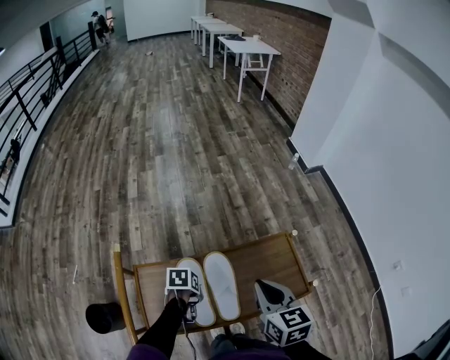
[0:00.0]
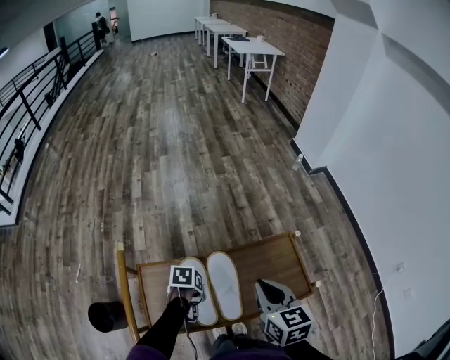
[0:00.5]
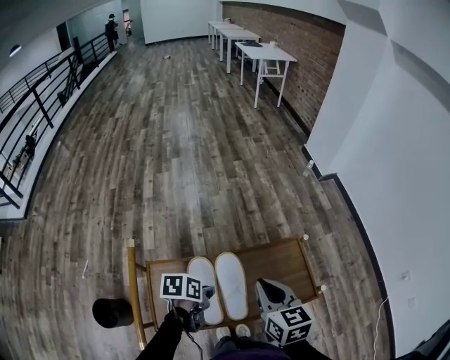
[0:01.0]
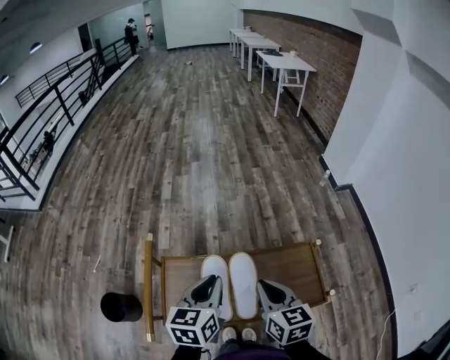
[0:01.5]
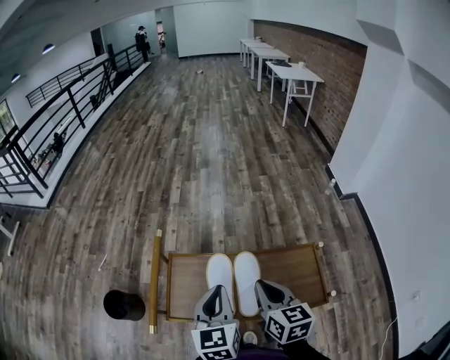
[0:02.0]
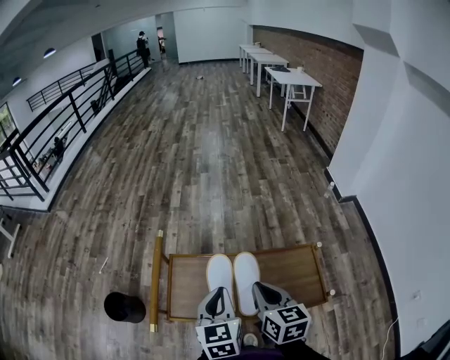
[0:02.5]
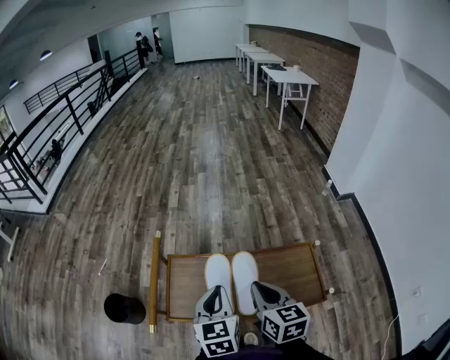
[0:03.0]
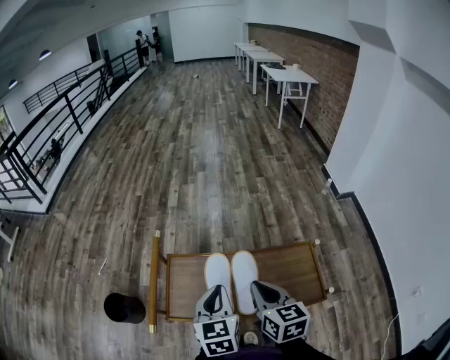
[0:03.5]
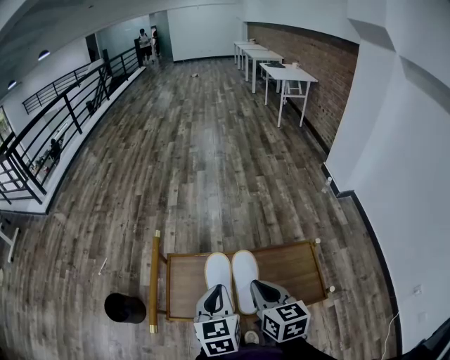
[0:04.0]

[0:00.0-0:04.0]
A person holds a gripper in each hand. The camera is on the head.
0.0 to 2.0 s: The left gripper heads upward, covering about 25 cm, and angles its fingers upward, by roughly 50 degrees; the right gripper moves roughly 10 cm.
2.0 to 4.0 s: The grippers stay close to where they were, moving slightly.

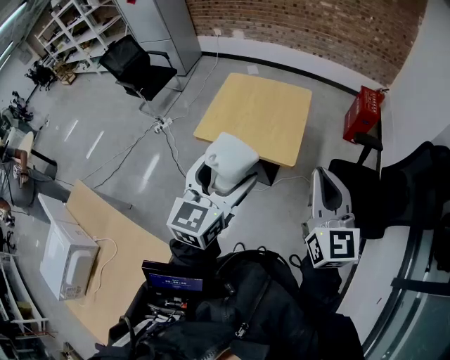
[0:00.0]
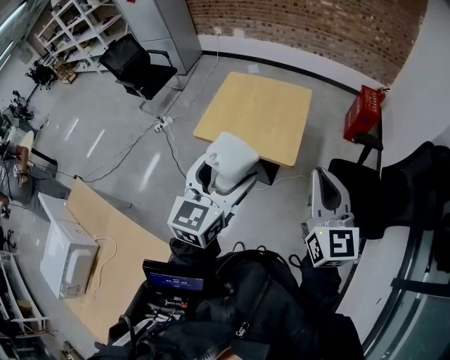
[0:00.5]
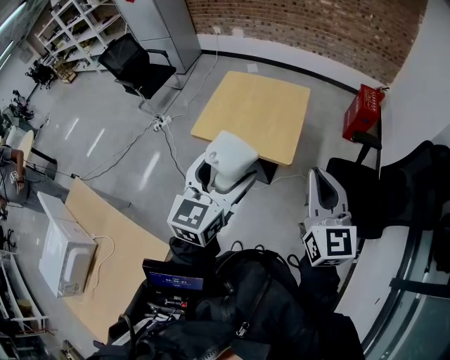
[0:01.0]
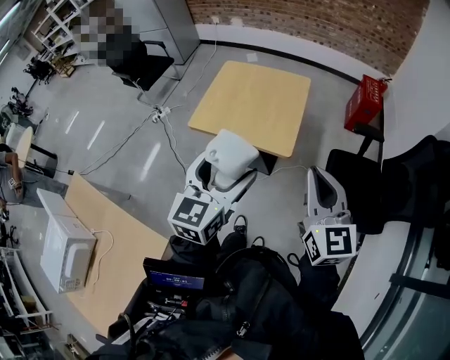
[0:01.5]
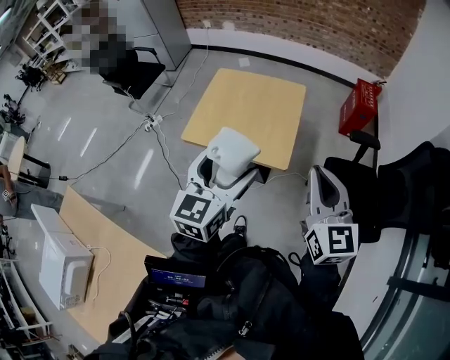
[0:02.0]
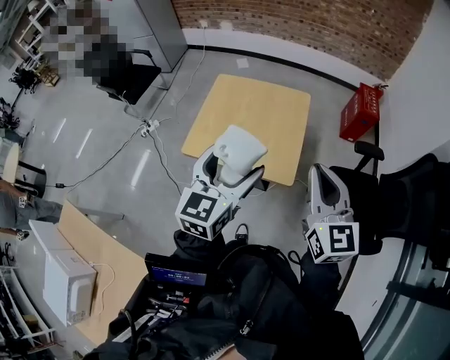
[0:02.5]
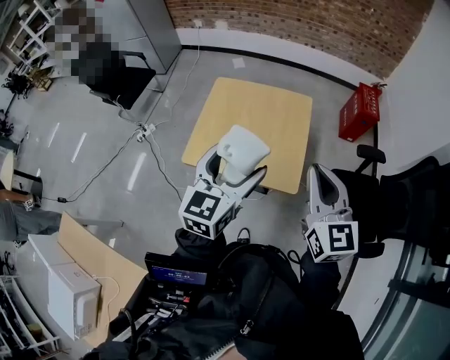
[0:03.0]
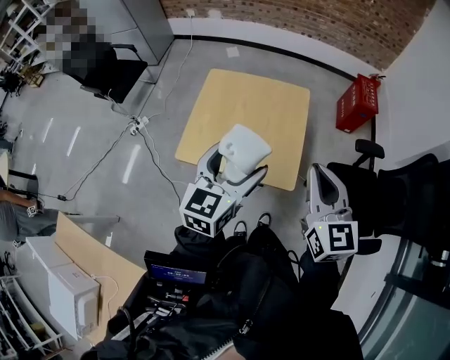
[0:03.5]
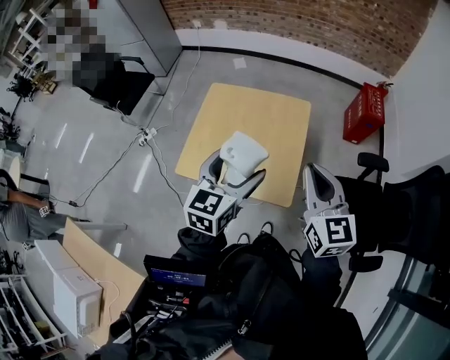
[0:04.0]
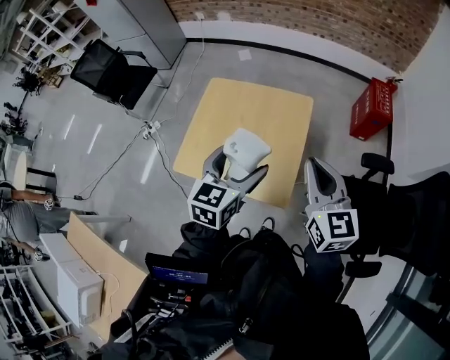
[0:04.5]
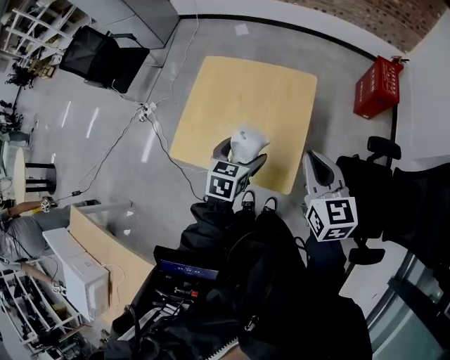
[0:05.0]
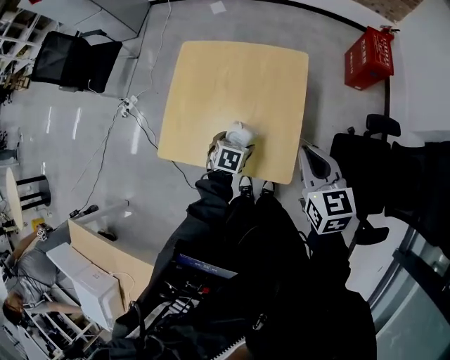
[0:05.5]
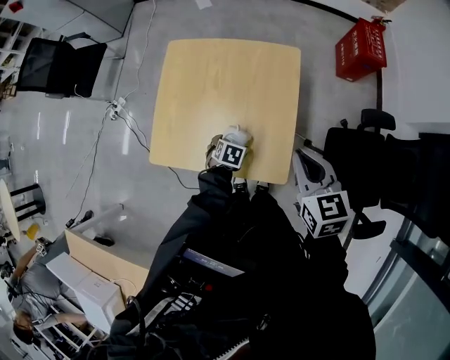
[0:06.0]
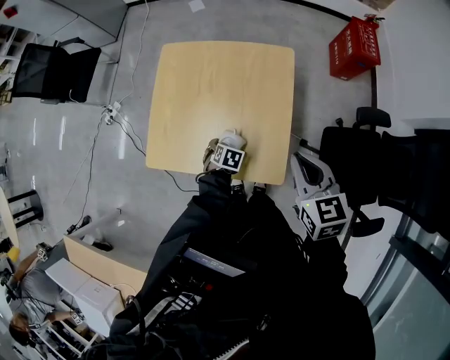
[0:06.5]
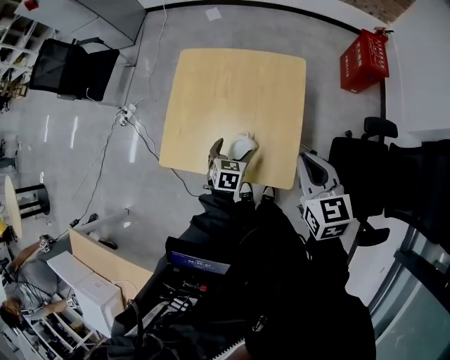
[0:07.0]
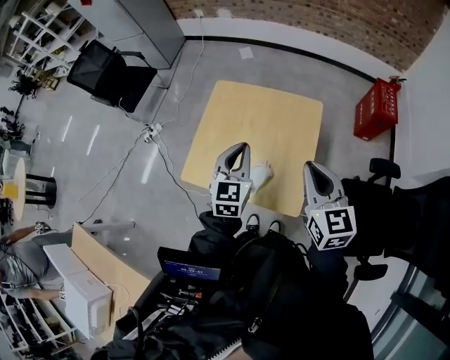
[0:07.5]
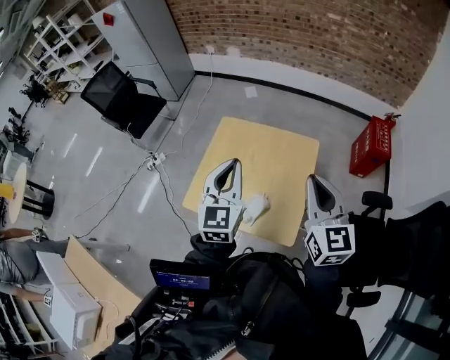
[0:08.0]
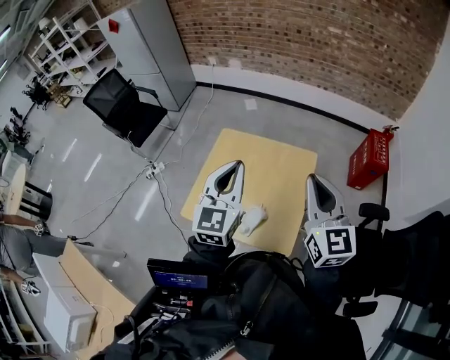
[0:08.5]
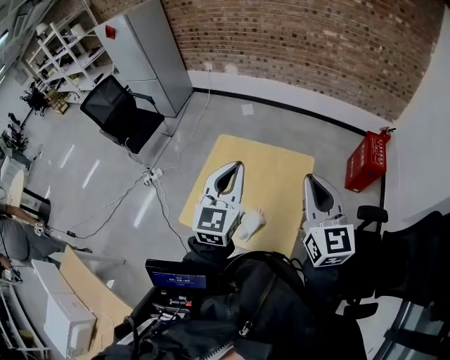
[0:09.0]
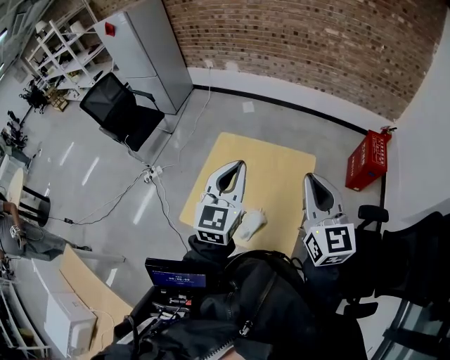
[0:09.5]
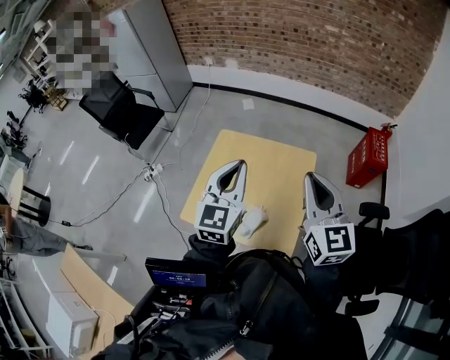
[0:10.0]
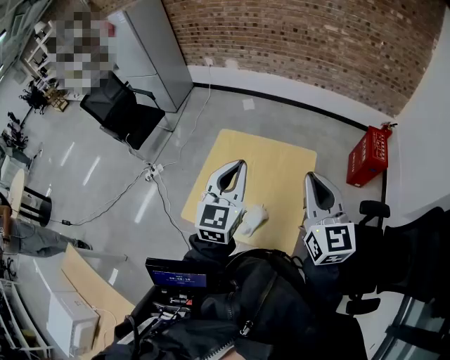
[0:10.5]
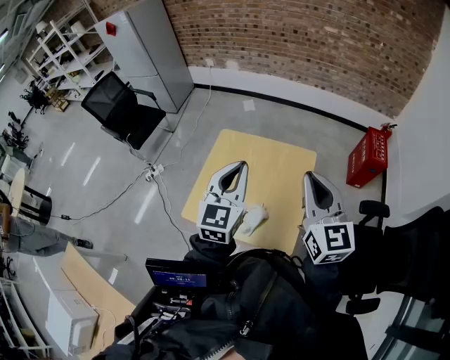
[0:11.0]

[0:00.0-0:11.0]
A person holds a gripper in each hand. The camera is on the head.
0.0 to 2.0 s: Both grippers travel together forward, about 10 cm.
2.0 to 3.5 s: The left gripper travels forward by some 15 cm. The right gripper moves forward and to the left, some 20 cm.
3.5 to 5.5 s: The left gripper shifts roughly 35 cm downward, and tips its fingers downward by roughly 50 degrees. Meanwhile the right gripper heads downward and forward, covering some 20 cm, and changes its angle by approximately 20 degrees.
5.5 to 7.5 s: The left gripper moves upward, roughly 25 cm, tips its fingers upward by about 40 degrees, and closes up. The right gripper shifts about 10 cm upward.
7.5 to 9.0 s: Both grippers travel together upward, approximately 15 cm.
9.0 to 11.0 s: The grippers stay close to where they were, moving slightly.

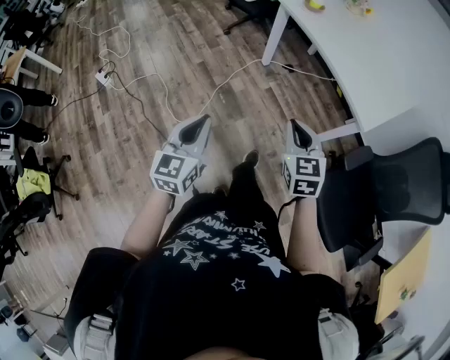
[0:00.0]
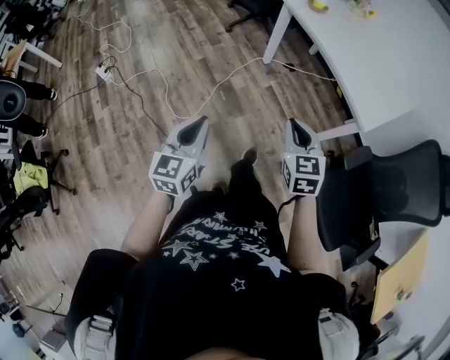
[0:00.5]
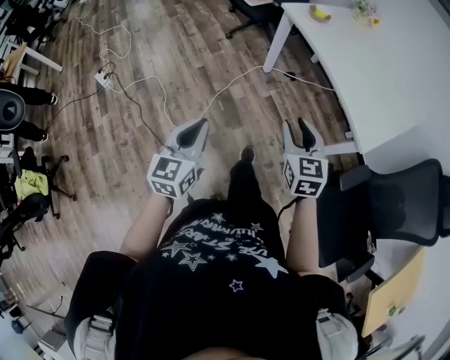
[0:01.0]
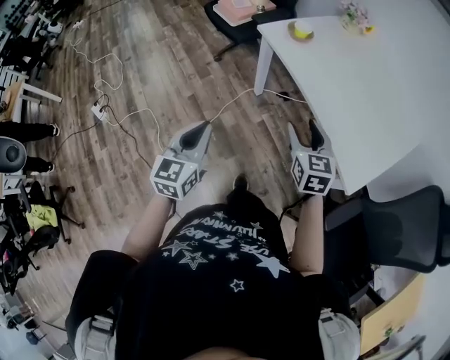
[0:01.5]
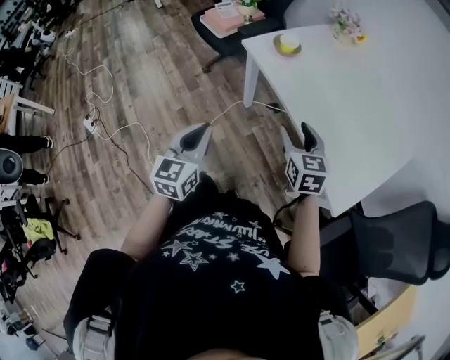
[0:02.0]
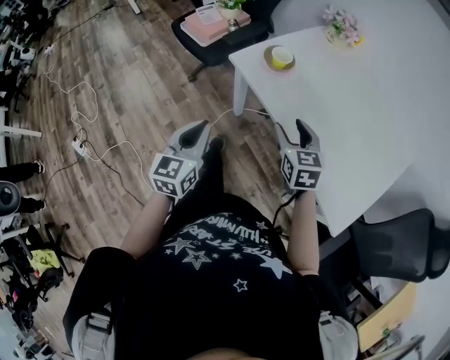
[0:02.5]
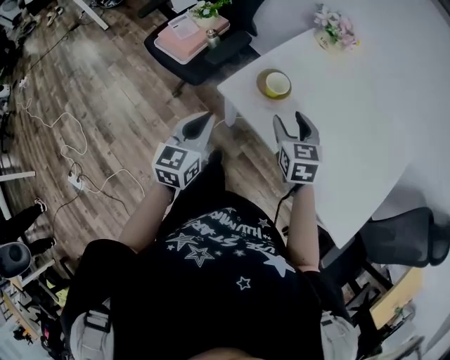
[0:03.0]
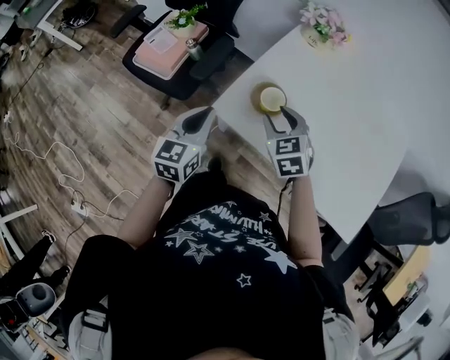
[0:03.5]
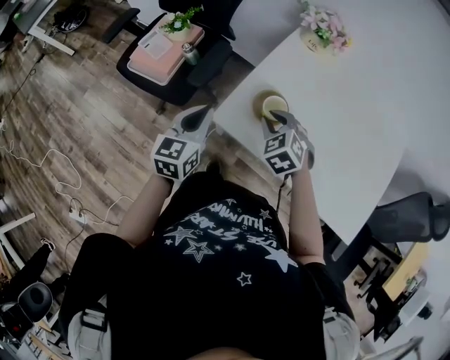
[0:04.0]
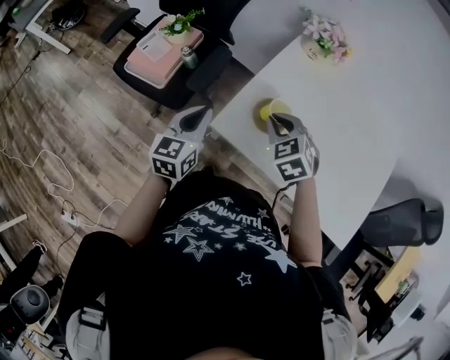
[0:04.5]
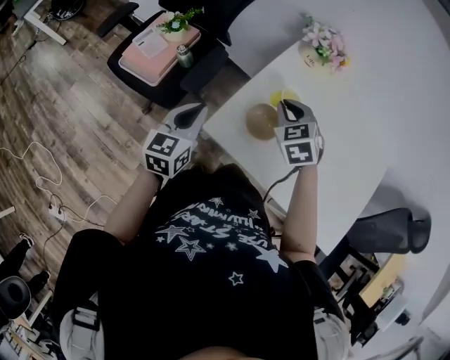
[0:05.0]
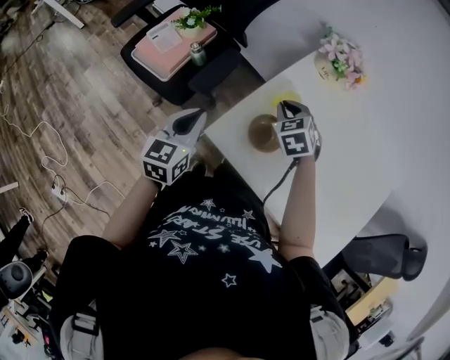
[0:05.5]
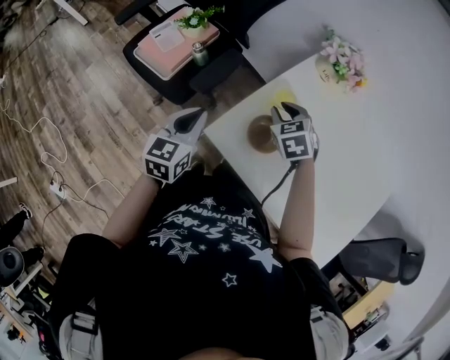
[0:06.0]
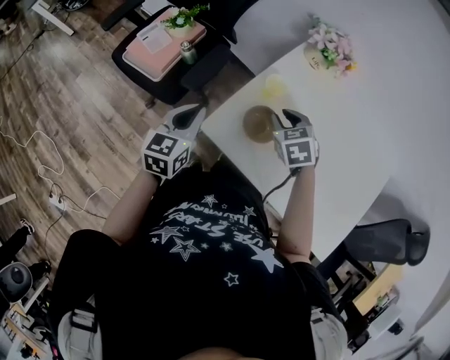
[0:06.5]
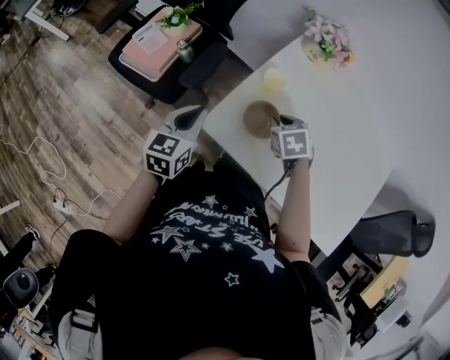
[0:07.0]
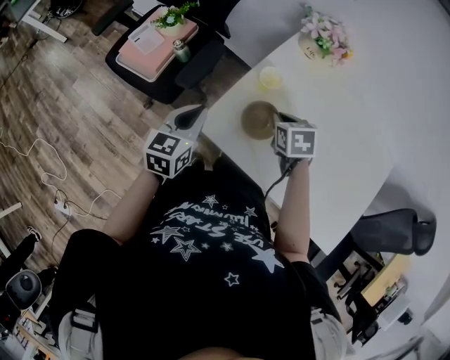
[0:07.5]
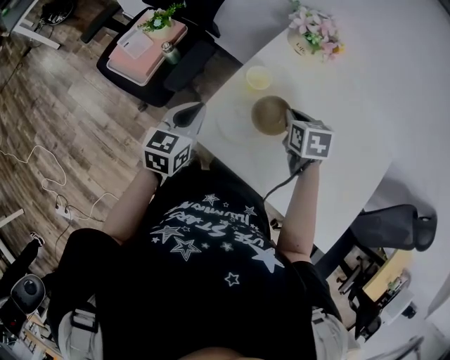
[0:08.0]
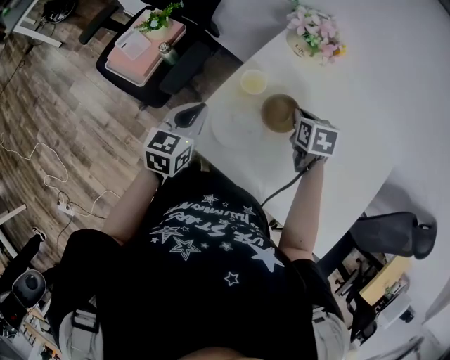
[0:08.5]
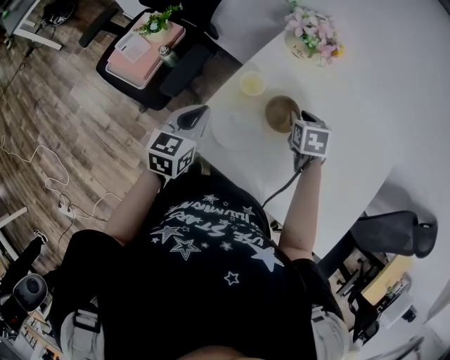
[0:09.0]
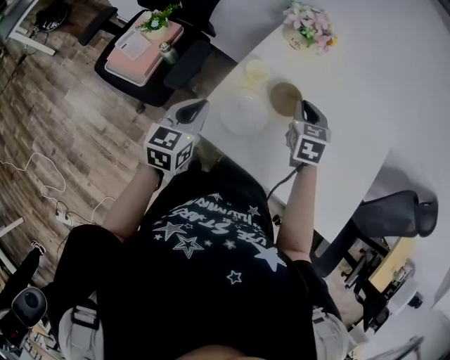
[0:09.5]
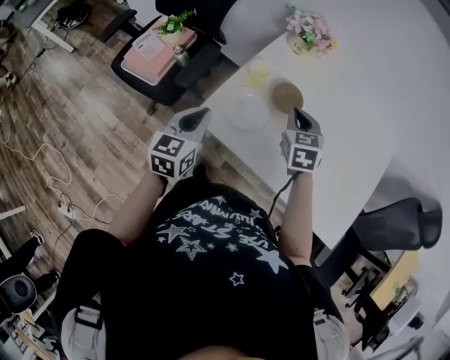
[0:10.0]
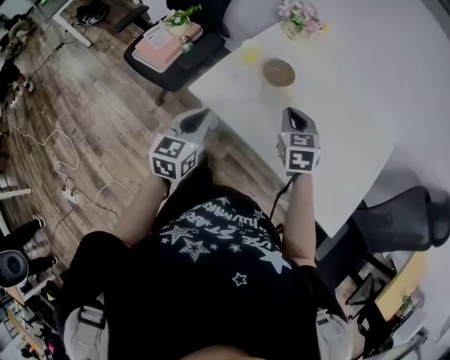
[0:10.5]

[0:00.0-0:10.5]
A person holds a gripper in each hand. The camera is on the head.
0.0 to 2.0 s: Both grippers move forward, approximately 35 cm. The right gripper opens up.
2.0 to 4.0 s: The left gripper changes place by roughly 50 cm, and swivels roughly 30 degrees. Meanwhile the right gripper ends up some 35 cm from where it was, turns by approximately 40 degrees, and closes.
4.0 to 6.5 s: The right gripper shifts some 10 cm forward.
6.5 to 8.5 s: The left gripper moves to the right and forward, some 10 cm. Meanwhile the right gripper travels to the right and forward by roughly 15 cm, changes its angle by some 30 degrees, and closes.
8.5 to 10.5 s: The left gripper moves backward and to the right, roughly 20 cm, while the right gripper moves backward and upward, some 20 cm, turns by about 30 degrees, and opens, then closes again.

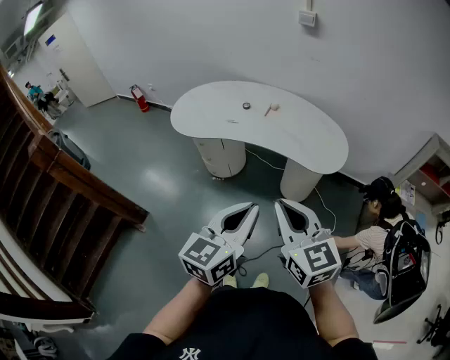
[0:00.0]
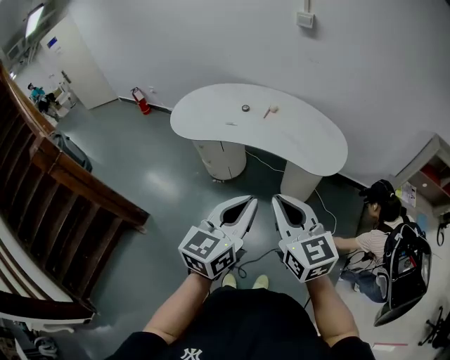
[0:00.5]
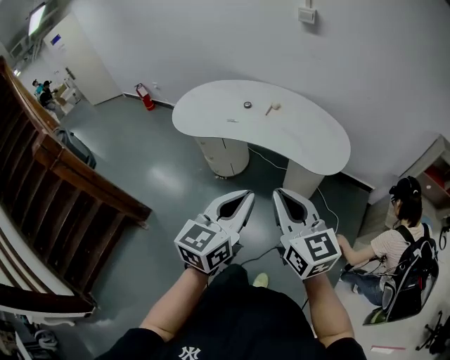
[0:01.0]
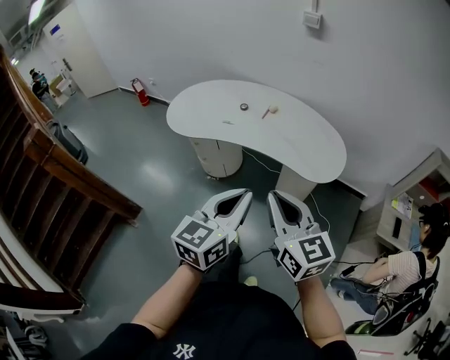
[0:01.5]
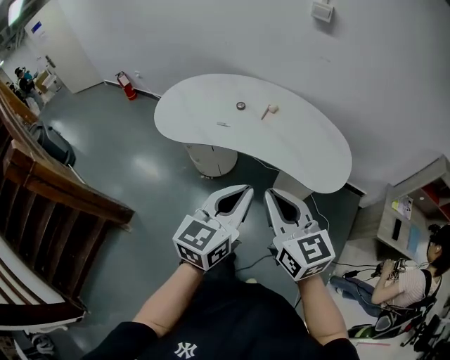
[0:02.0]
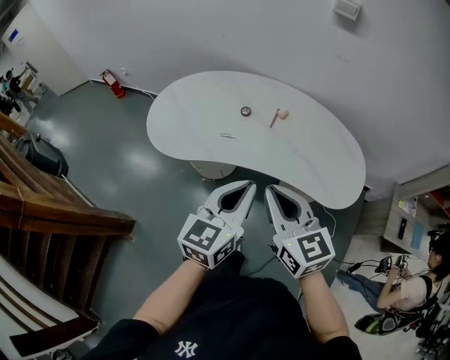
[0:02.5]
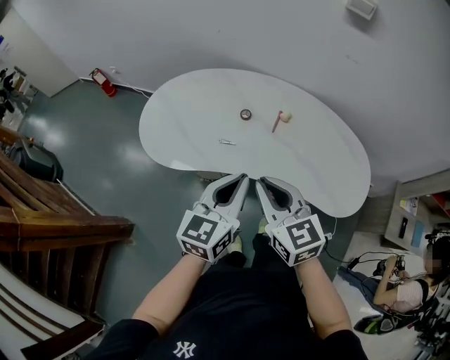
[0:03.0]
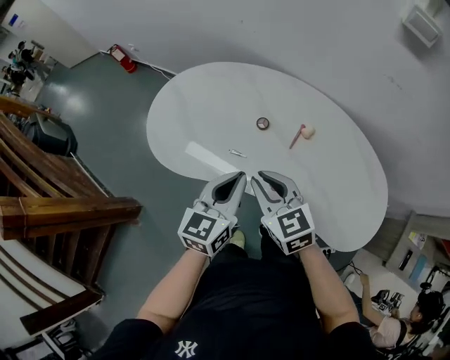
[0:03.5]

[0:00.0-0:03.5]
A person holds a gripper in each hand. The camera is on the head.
0.0 to 2.0 s: Both grippers travel together forward, roughly 20 cm.
2.0 to 3.5 s: The two grippers go roughly 35 cm forward. The right gripper turns by roughly 20 degrees.
